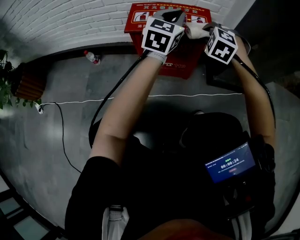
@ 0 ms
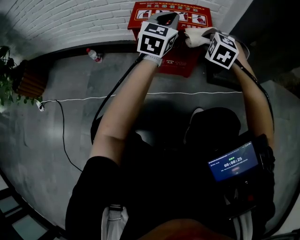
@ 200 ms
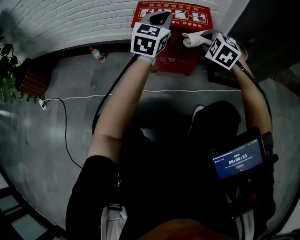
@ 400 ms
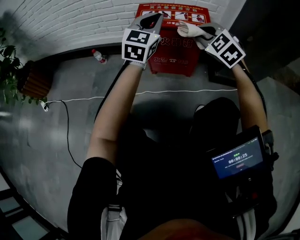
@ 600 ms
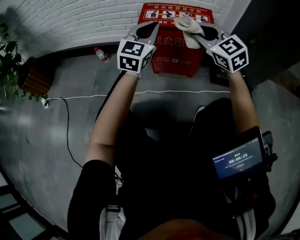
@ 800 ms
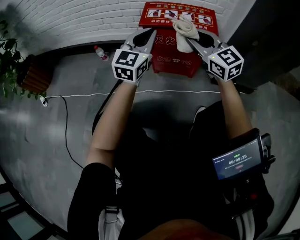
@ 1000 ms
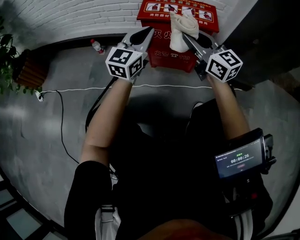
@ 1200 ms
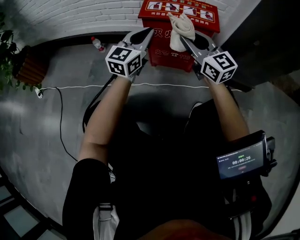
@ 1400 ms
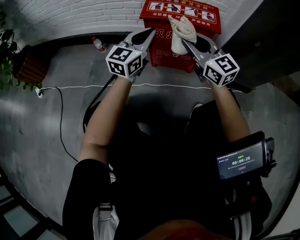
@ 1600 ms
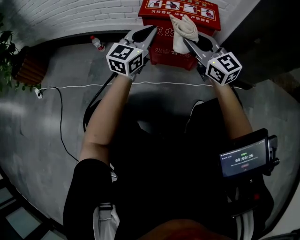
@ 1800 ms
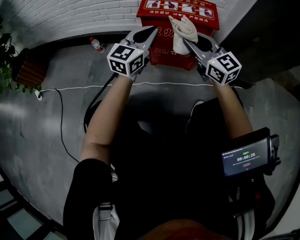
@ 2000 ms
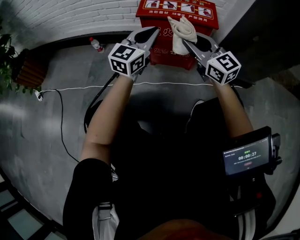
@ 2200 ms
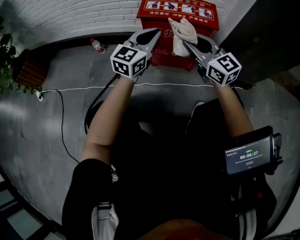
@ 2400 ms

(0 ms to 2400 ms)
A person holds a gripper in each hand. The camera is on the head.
0 ms - 1200 ms: The left gripper is displaced to the left and backward by roughly 20 cm; the right gripper shifts approximately 20 cm backward, to the left and upward, and tilts its fingers about 50 degrees upward.
1200 ms - 2400 ms: The grippers move only a little.

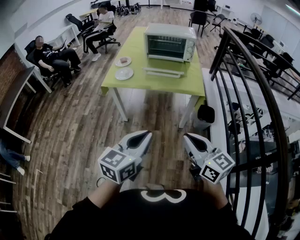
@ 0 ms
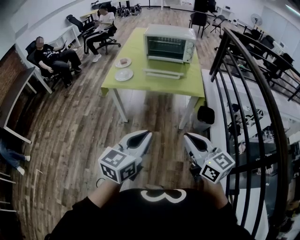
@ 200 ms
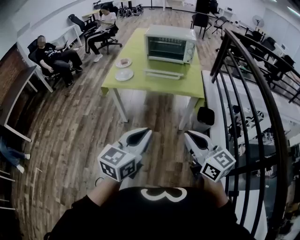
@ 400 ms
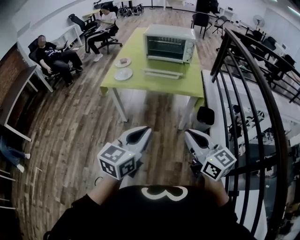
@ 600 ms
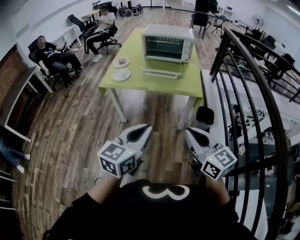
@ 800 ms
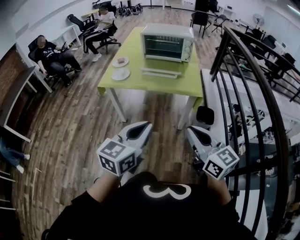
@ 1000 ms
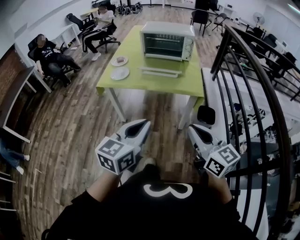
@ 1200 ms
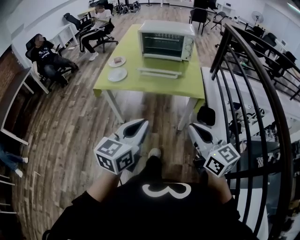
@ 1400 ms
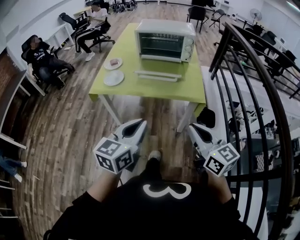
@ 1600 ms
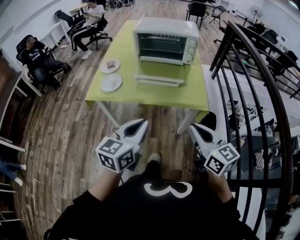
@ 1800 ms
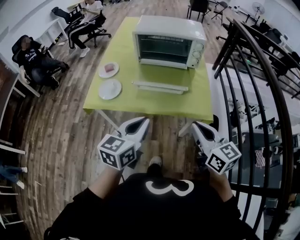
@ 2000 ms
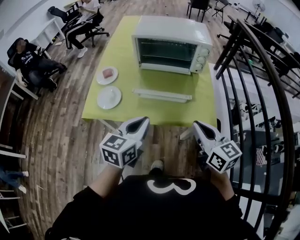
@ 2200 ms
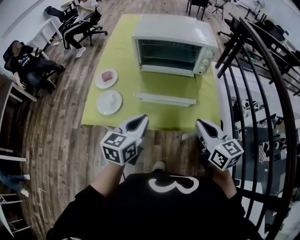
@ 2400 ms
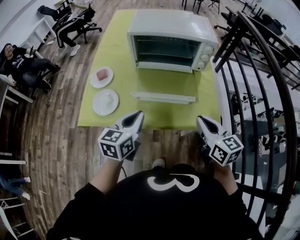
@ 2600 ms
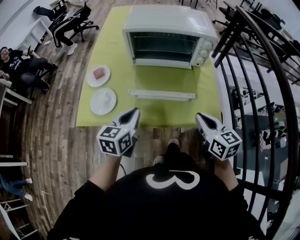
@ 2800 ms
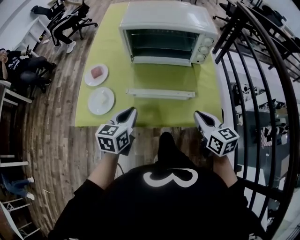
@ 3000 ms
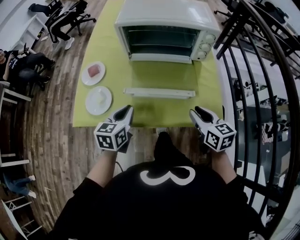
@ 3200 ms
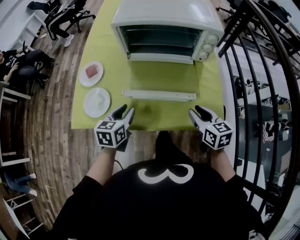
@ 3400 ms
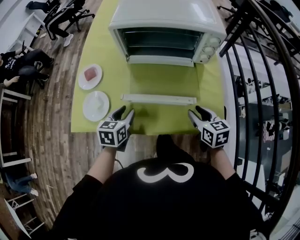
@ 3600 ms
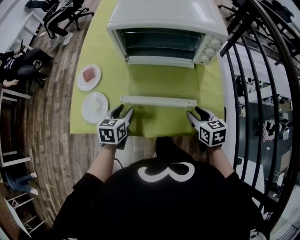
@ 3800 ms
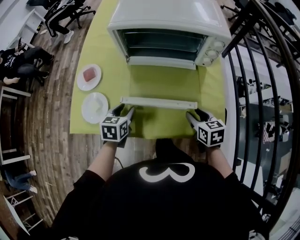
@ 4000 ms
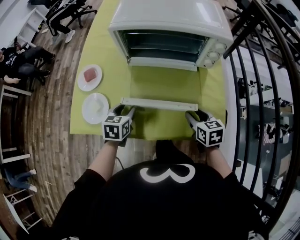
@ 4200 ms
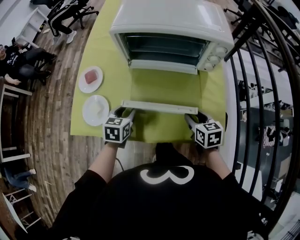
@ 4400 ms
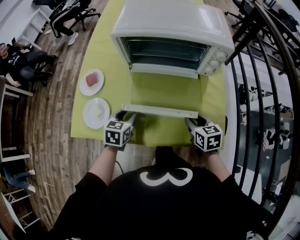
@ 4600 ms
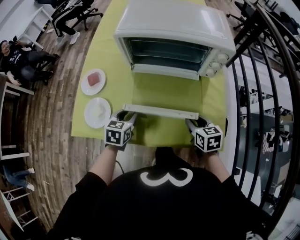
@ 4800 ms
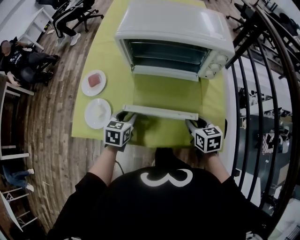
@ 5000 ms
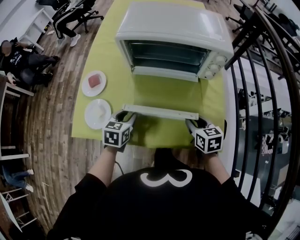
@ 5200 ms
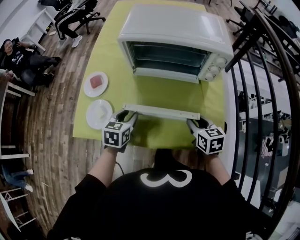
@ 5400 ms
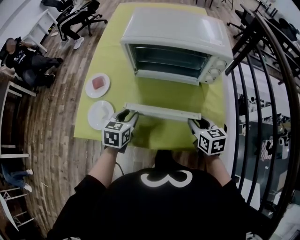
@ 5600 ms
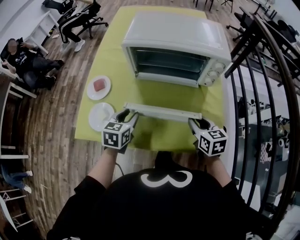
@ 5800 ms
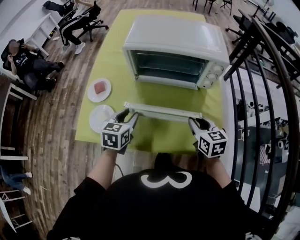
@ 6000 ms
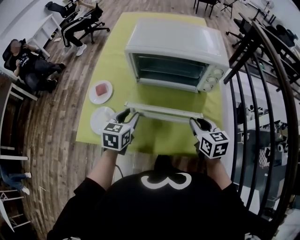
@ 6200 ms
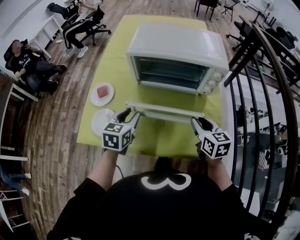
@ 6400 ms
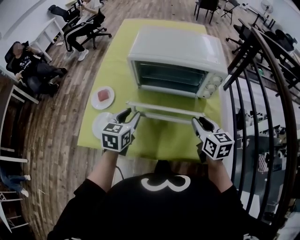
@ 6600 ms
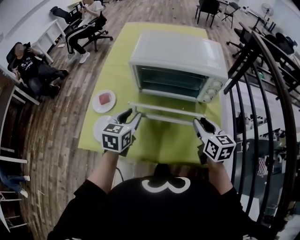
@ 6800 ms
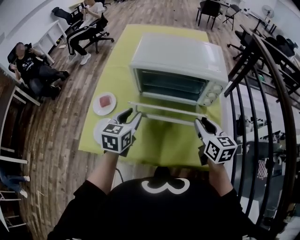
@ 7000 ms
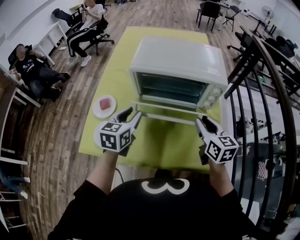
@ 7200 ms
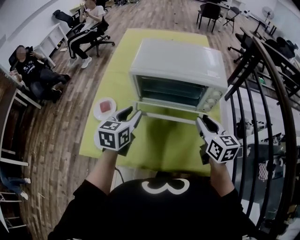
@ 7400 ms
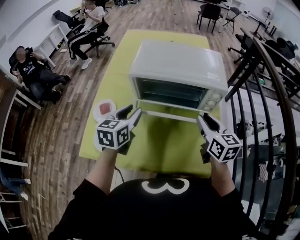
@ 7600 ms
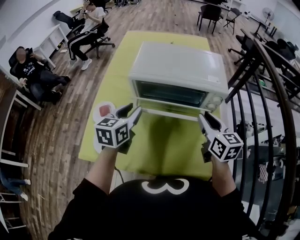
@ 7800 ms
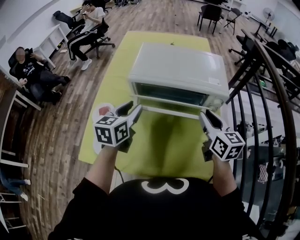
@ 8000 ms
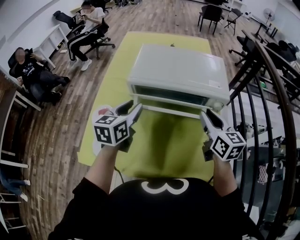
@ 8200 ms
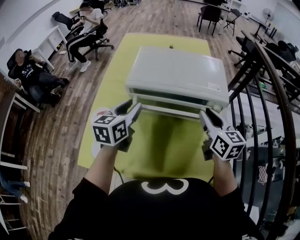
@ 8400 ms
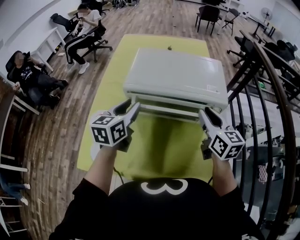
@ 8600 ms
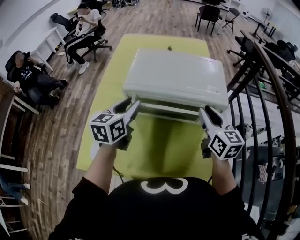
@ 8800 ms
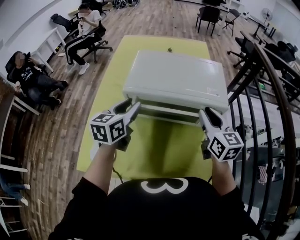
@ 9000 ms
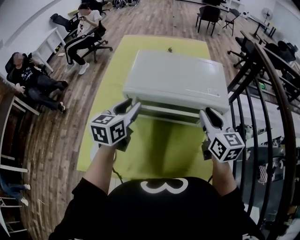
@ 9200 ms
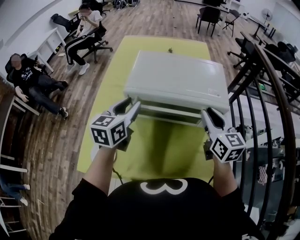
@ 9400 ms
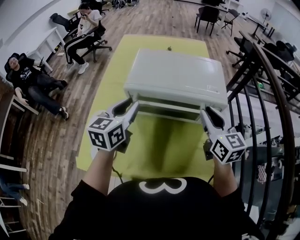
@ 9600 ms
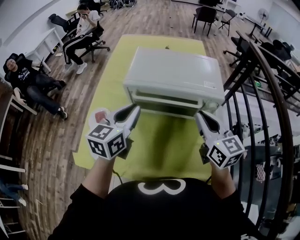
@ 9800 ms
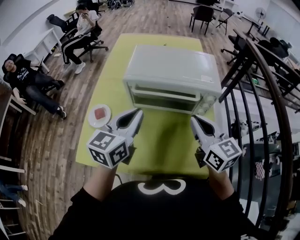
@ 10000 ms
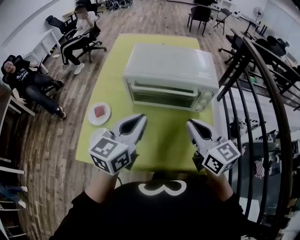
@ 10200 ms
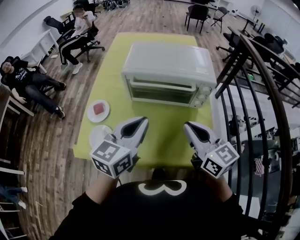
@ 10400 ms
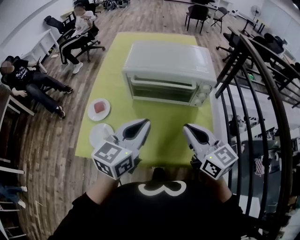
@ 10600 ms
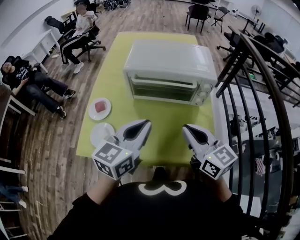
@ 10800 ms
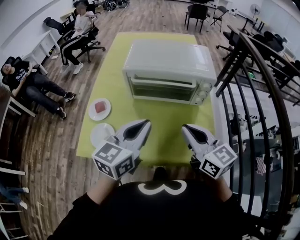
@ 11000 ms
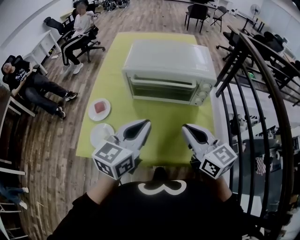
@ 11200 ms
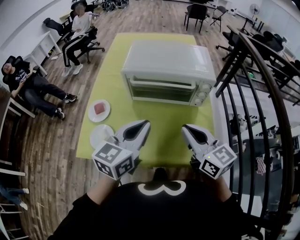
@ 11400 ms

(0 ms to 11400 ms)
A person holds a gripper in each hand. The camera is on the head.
0 ms - 1400 ms: The right gripper goes roughly 10 cm forward and to the right. Meanwhile the left gripper is displaced forward by approximately 10 cm.
1400 ms - 2800 ms: Both grippers are carried forward, approximately 40 cm. The right gripper changes its angle by about 20 degrees.
2800 ms - 4200 ms: Both grippers move downward and forward, approximately 20 cm. The left gripper rotates some 20 degrees, and opens its fingers; the right gripper rotates some 20 degrees, and opens up.
4200 ms - 5600 ms: The right gripper shifts by approximately 5 cm.
5600 ms - 7200 ms: Both grippers travel together upward and forward, some 15 cm.
7200 ms - 8600 ms: The two grippers go some 10 cm forward and upward.
8600 ms - 10000 ms: Both grippers travel together backward, about 10 cm. The right gripper closes up. The left gripper closes.
10000 ms - 11400 ms: The grippers both shift backward by approximately 10 cm.

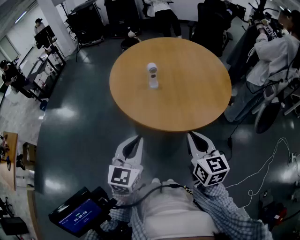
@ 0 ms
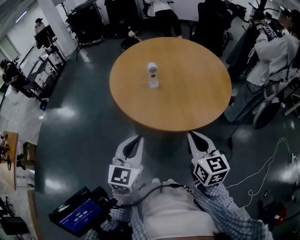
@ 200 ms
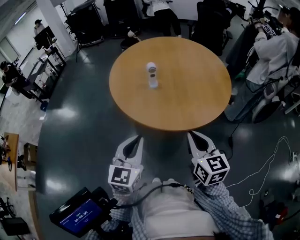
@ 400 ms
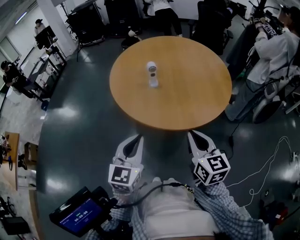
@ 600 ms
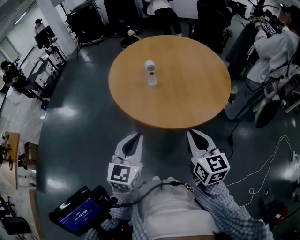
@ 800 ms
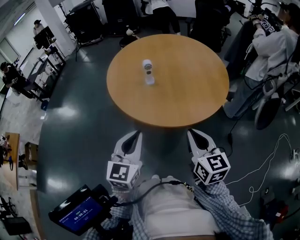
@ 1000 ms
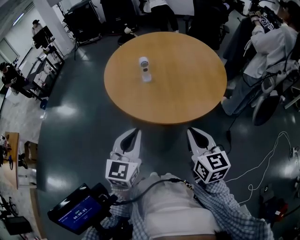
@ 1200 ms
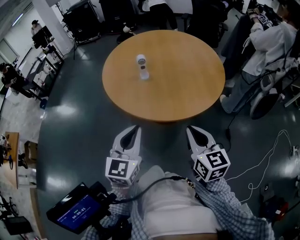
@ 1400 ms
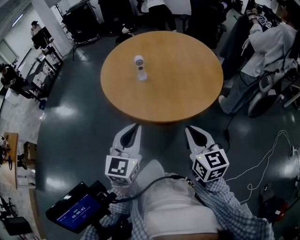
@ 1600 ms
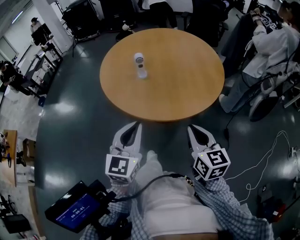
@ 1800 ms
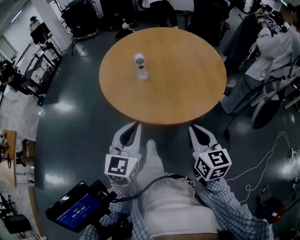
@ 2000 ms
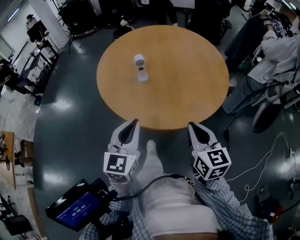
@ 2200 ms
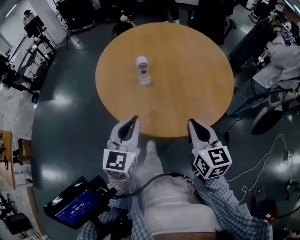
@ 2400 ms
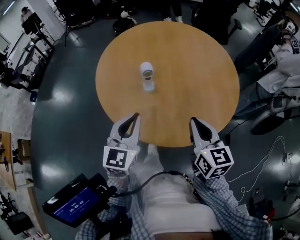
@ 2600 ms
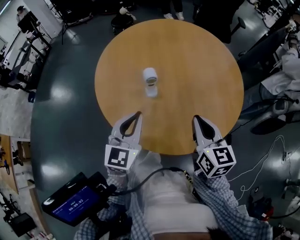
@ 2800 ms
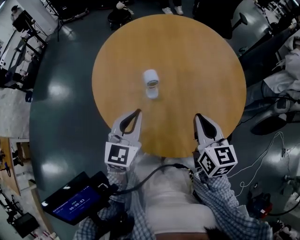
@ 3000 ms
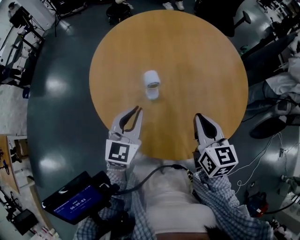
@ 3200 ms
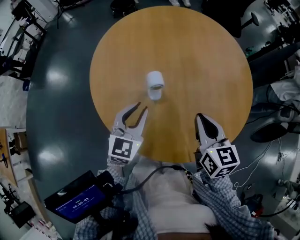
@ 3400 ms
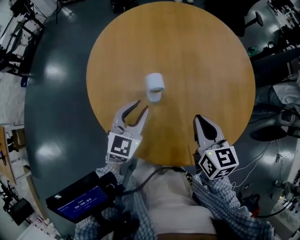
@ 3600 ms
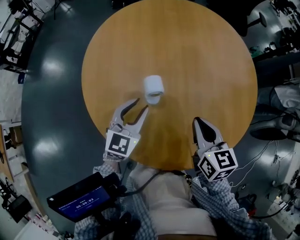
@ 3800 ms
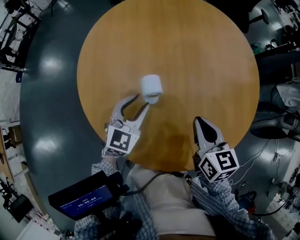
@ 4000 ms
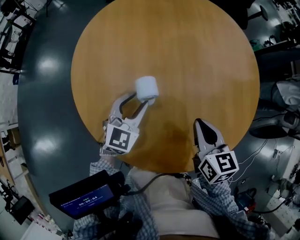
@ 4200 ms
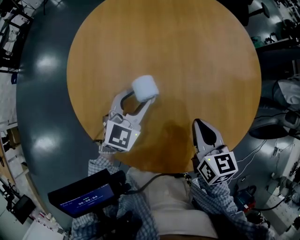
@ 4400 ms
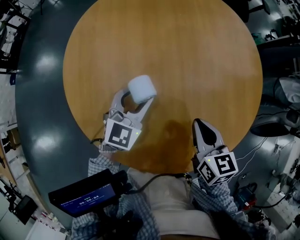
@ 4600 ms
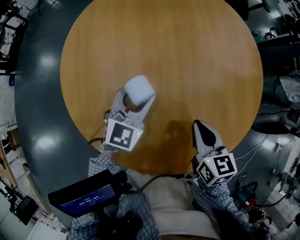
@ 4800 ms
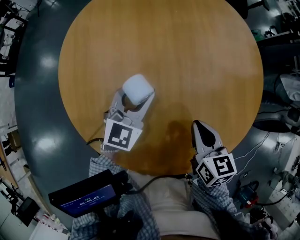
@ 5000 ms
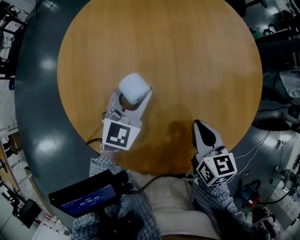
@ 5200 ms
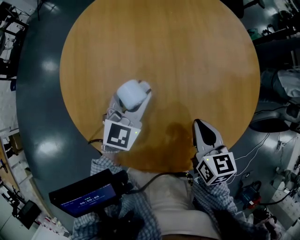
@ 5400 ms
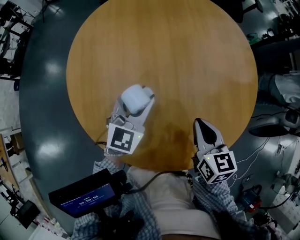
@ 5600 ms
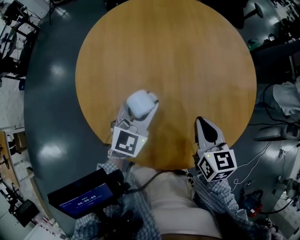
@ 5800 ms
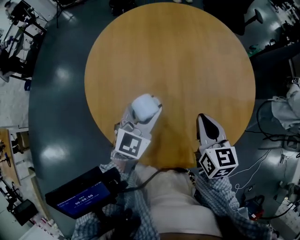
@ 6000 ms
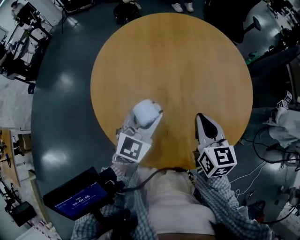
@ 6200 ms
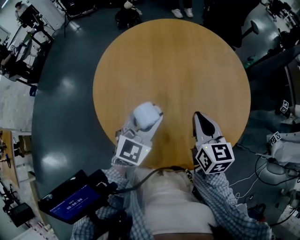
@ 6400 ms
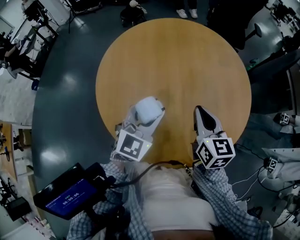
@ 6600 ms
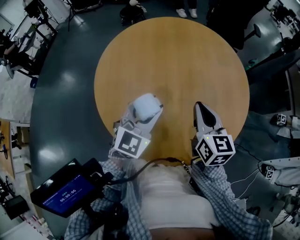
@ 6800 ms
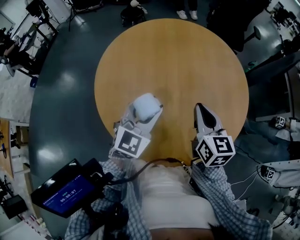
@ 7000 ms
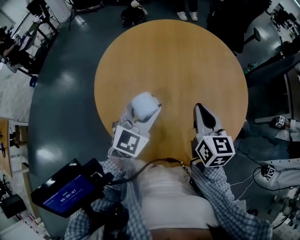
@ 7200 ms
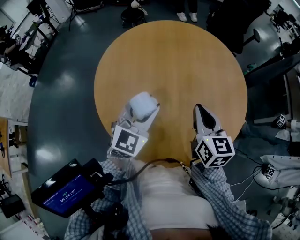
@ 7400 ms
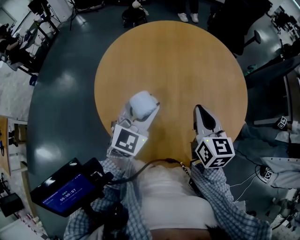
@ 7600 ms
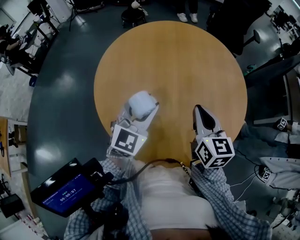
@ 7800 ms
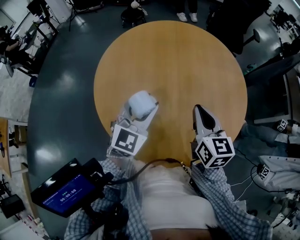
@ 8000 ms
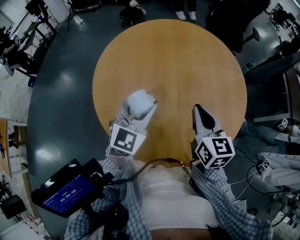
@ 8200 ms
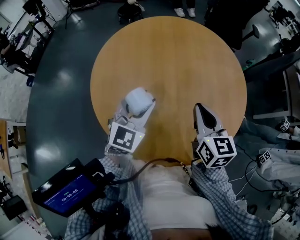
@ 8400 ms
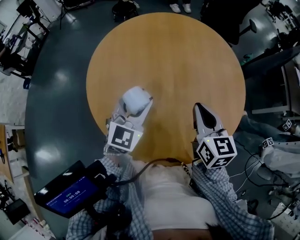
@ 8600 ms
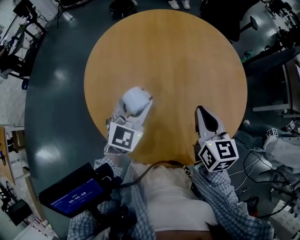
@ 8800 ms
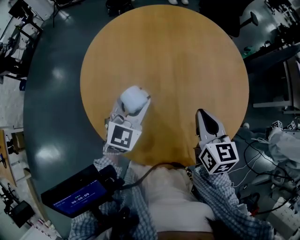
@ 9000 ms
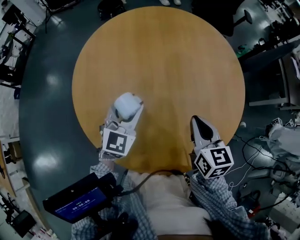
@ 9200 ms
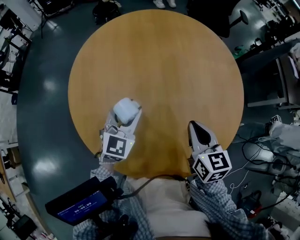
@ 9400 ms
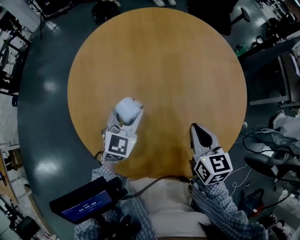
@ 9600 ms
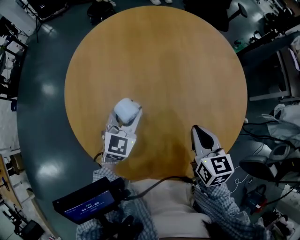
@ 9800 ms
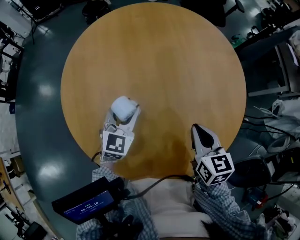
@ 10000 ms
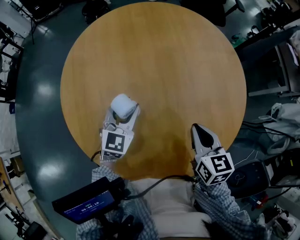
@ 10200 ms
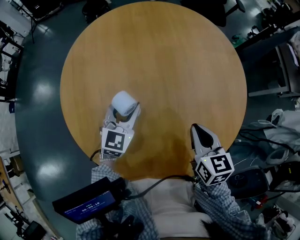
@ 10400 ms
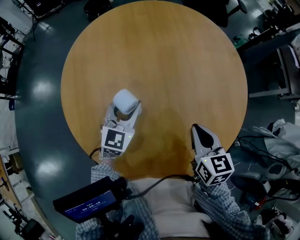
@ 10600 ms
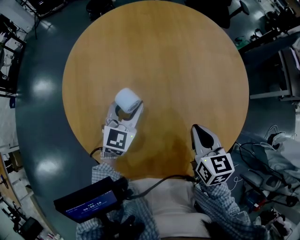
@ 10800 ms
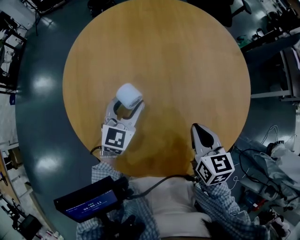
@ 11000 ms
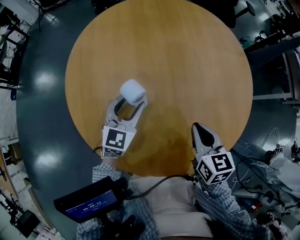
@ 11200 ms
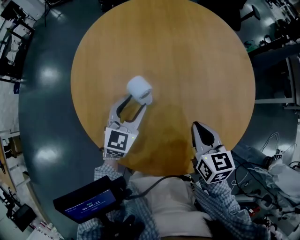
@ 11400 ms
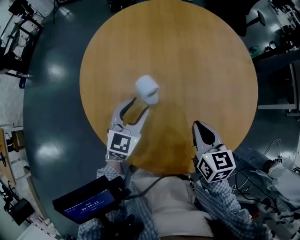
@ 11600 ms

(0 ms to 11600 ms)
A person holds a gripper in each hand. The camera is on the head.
0 ms - 1400 ms: The grippers make only small movements.
1400 ms - 2800 ms: Both grippers travel together forward, approximately 25 cm.
2800 ms - 4400 ms: Both grippers travel together downward and forward, roughly 20 cm. The left gripper opens up.
4400 ms - 5800 ms: The left gripper shifts approximately 10 cm upward. The right gripper moves roughly 5 cm.
5800 ms - 7200 ms: The grippers both shift upward by about 5 cm.
7200 ms - 8800 ms: The grippers move only a little.
8800 ms - 10200 ms: The left gripper moves downward and forward, approximately 20 cm; the right gripper heads downward, covering some 15 cm.
10200 ms - 11600 ms: The left gripper heads backward, covering some 5 cm. Meanwhile the right gripper changes place by some 5 cm.
